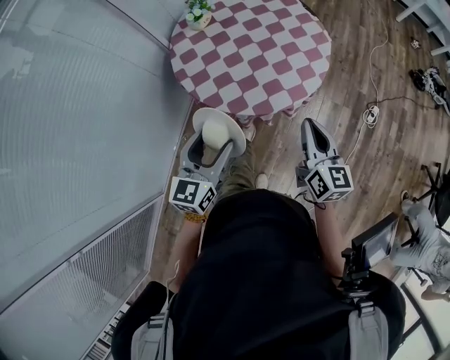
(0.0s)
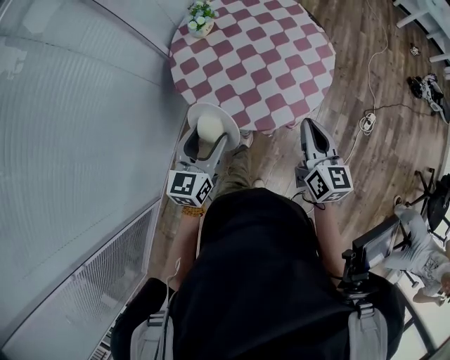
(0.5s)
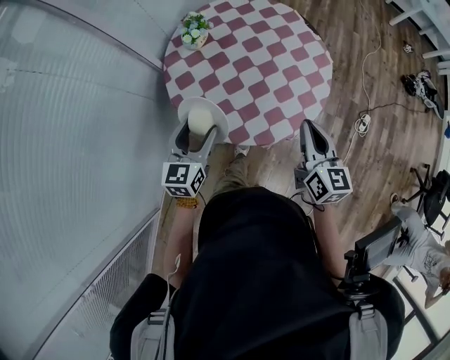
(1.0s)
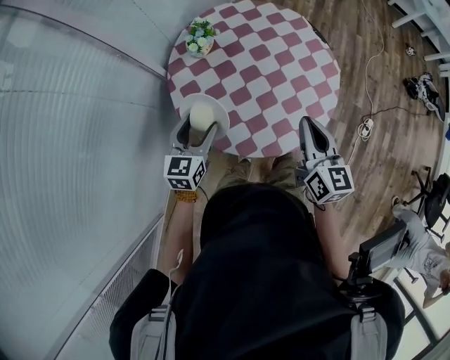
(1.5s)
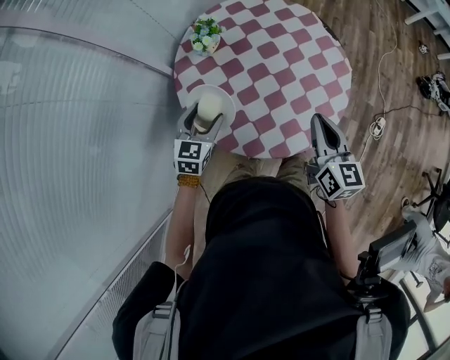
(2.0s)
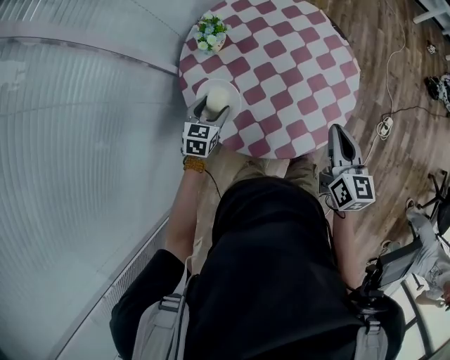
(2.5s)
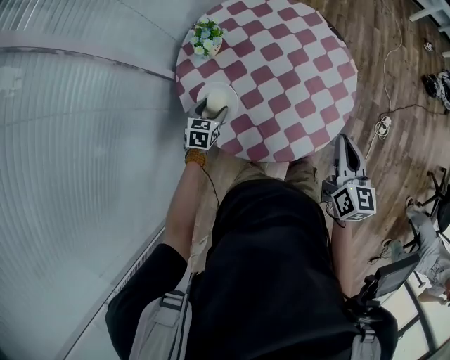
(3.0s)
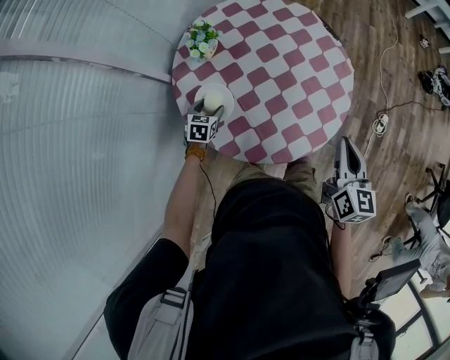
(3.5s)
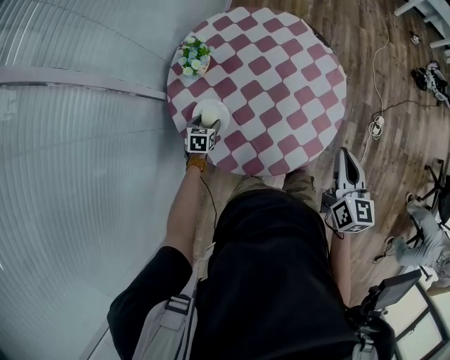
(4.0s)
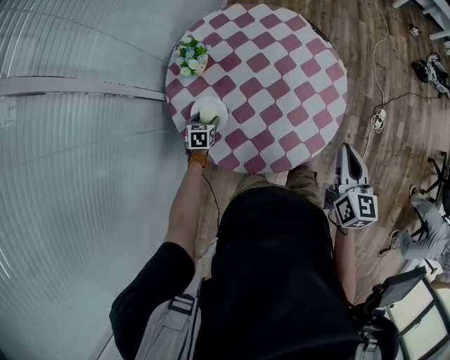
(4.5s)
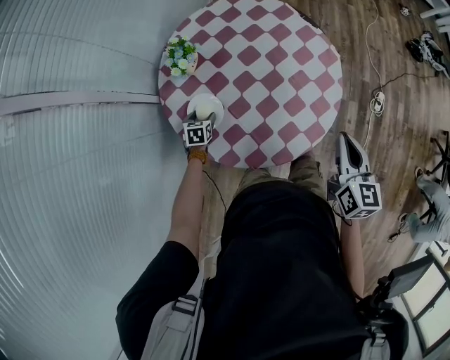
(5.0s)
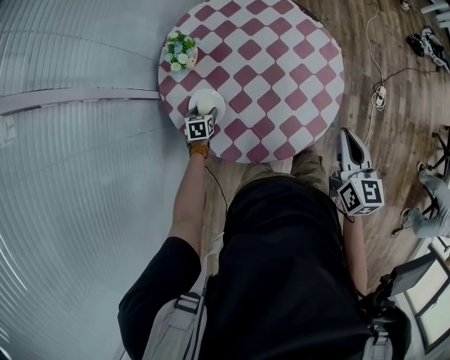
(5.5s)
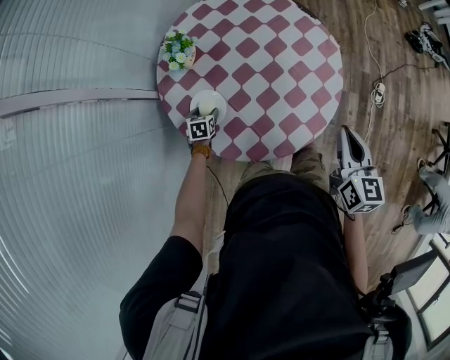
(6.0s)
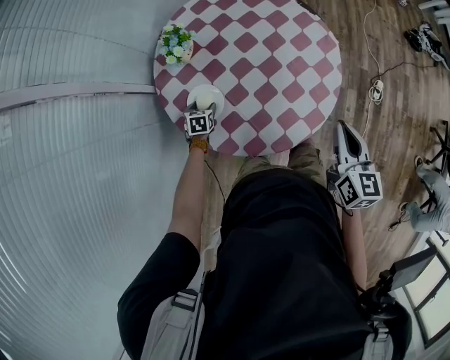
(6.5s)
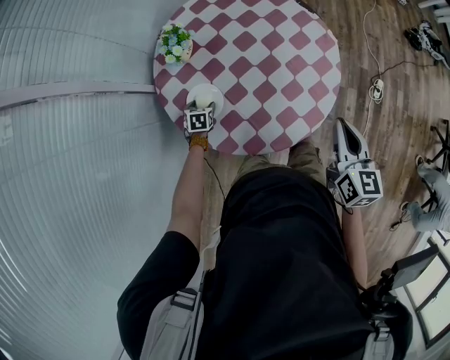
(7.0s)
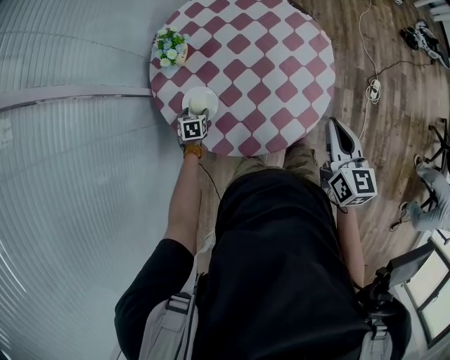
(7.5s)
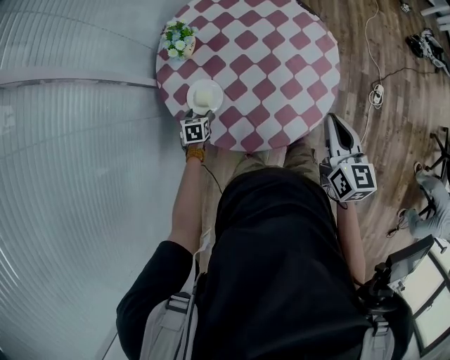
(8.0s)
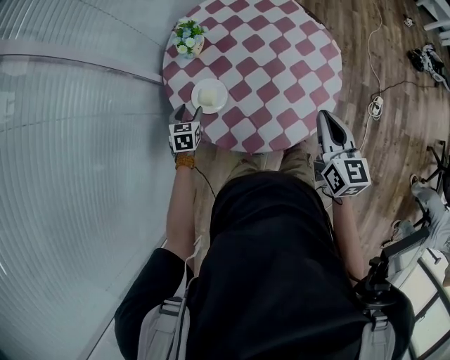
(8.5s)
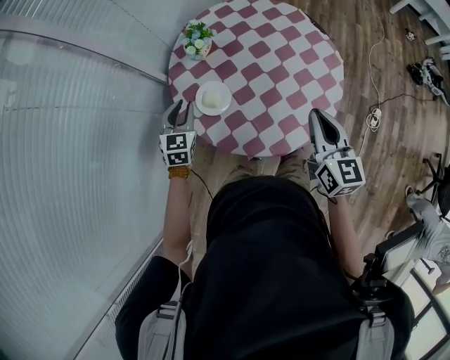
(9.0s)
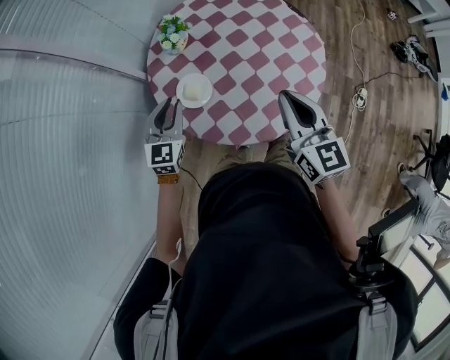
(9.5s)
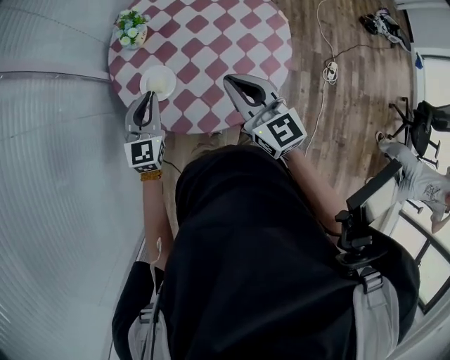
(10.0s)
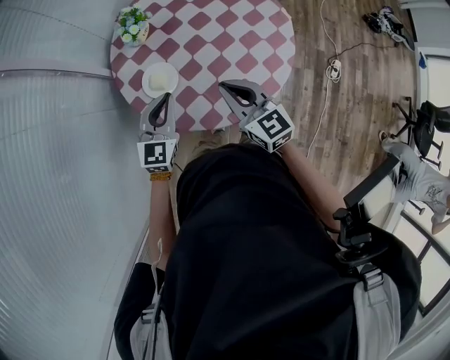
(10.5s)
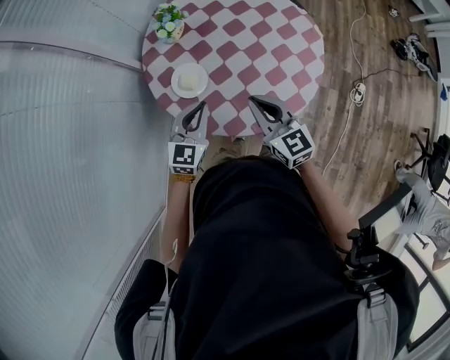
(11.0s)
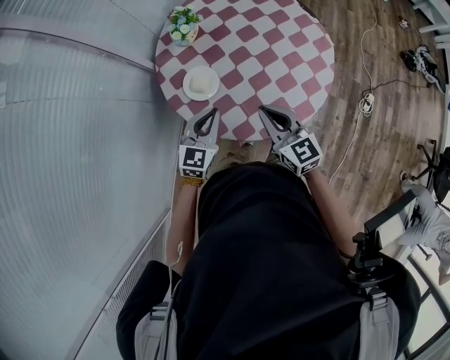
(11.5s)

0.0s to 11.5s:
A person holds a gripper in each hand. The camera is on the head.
0.0s to 2.0s: The left gripper goes some 35 cm forward, downward and to the left. Meanwhile the right gripper is displaced forward by about 20 cm.
2.0s to 4.0s: The right gripper shifts about 10 cm to the right; the left gripper is displaced downward by about 20 cm, and turns by approximately 30 degrees.
4.0s to 7.5s: The grippers make only small movements.
7.5s to 9.5s: The left gripper shifts about 30 cm upward, points its fingers some 40 degrees further upward, and closes its fingers. Meanwhile the right gripper goes roughly 15 cm to the left and upward, and rotates approximately 20 degrees.
9.5s to 11.5s: The left gripper heads to the right and backward, covering some 10 cm. The right gripper is displaced downward and to the left by approximately 10 cm.

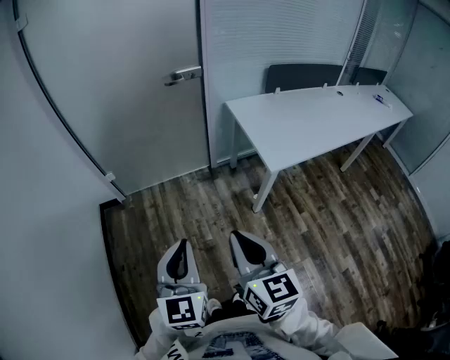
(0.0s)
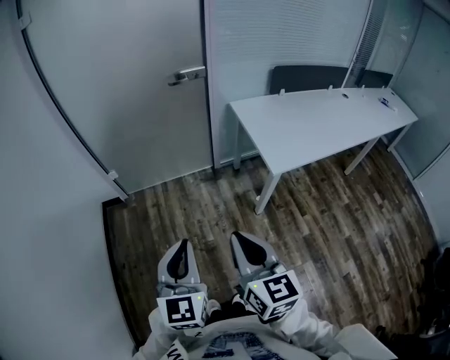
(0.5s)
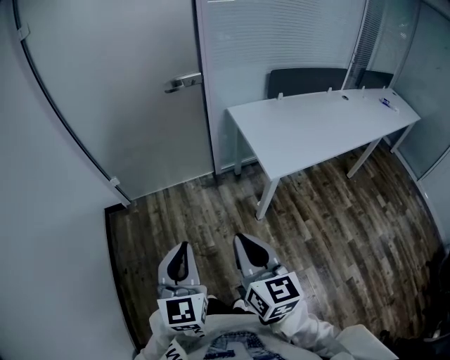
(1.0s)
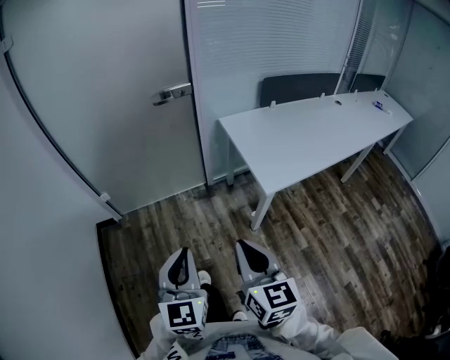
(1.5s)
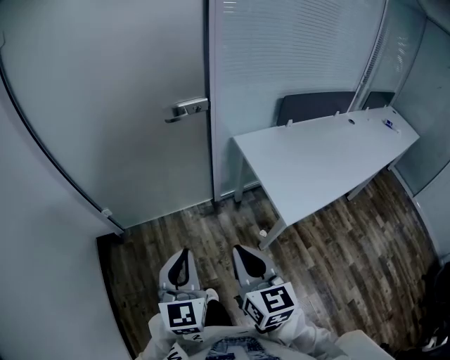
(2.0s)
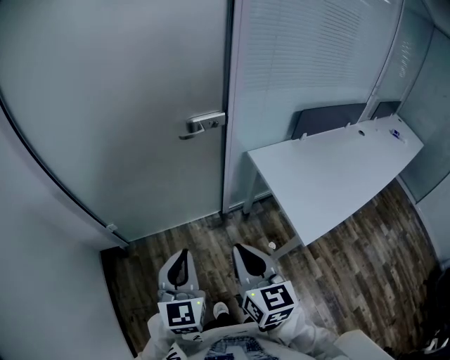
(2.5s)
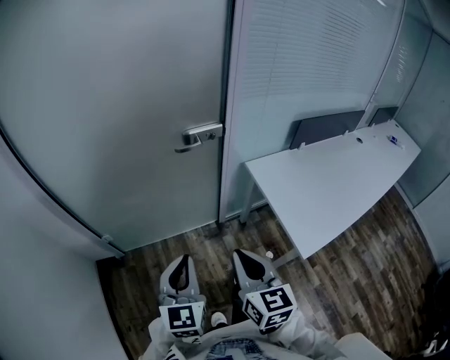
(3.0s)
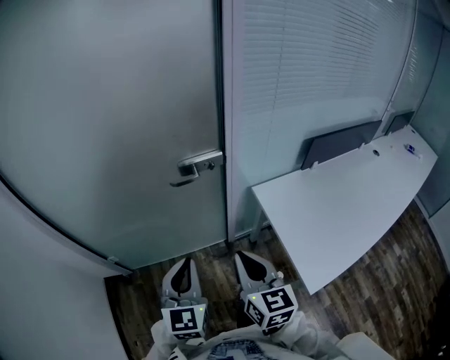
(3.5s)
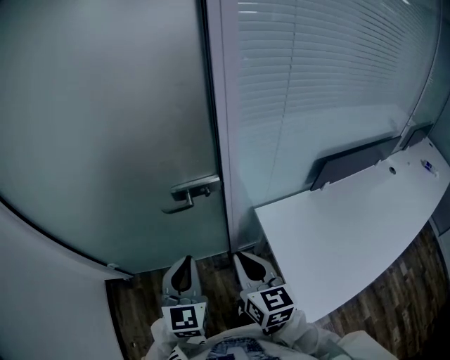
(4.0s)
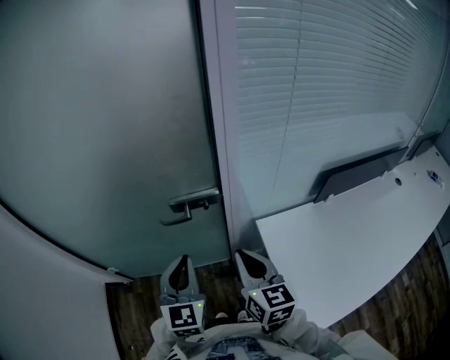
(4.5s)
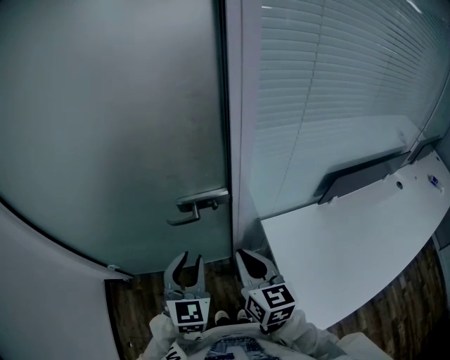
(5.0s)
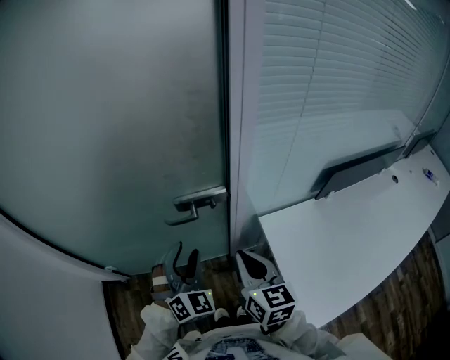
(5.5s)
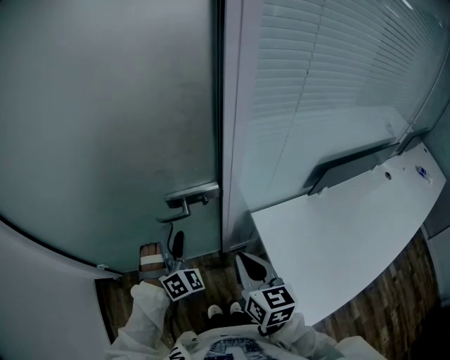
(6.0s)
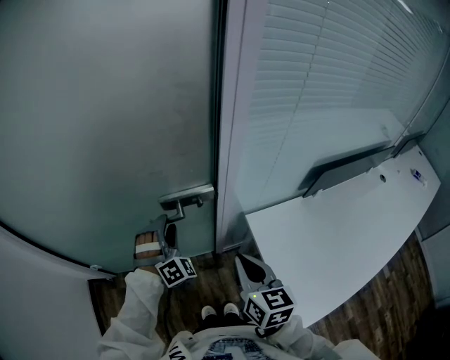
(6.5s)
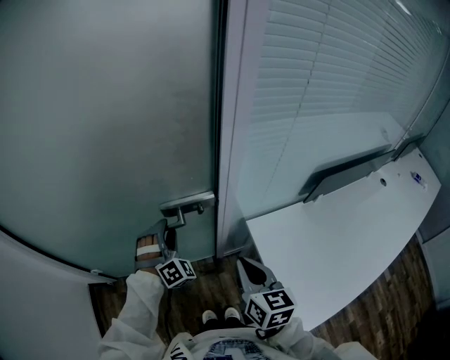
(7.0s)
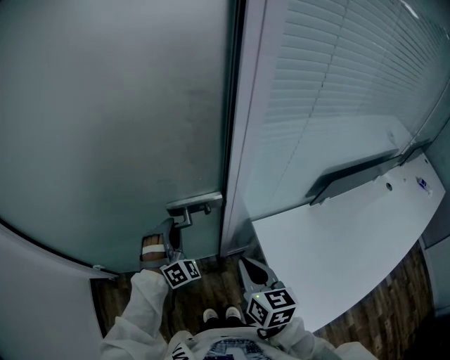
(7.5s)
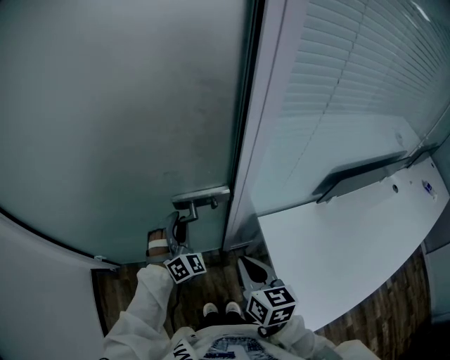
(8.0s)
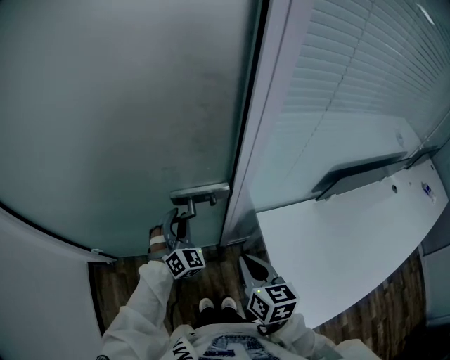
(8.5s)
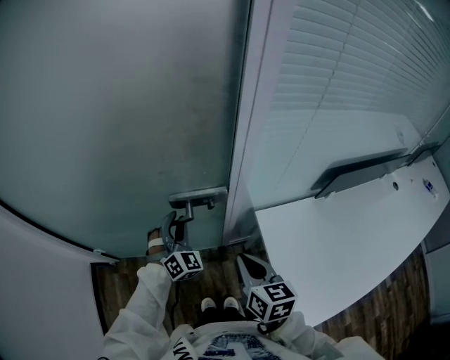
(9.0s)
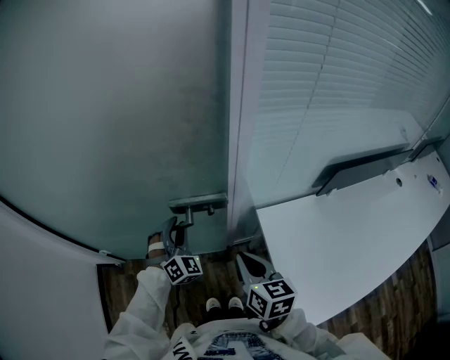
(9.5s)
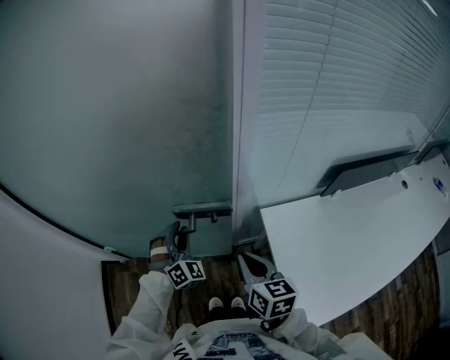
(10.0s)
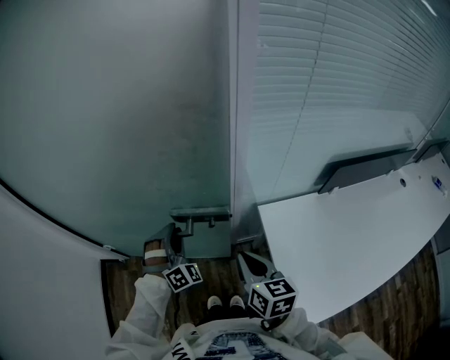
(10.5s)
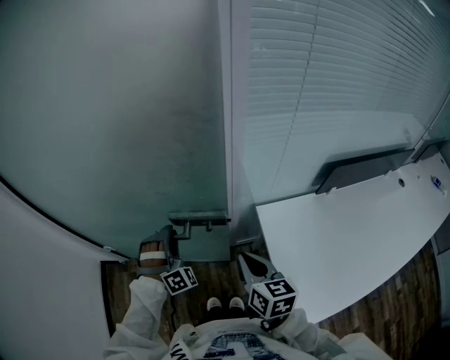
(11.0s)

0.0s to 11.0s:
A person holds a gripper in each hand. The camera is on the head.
0.0s to 2.0s: The two grippers go approximately 20 cm forward.
2.0s to 3.5s: The grippers both shift forward by roughly 30 cm.
3.5s to 5.5s: Both grippers move forward, about 20 cm. The left gripper rotates around the line of its fingers by about 40 degrees, clockwise from behind, and opens.
5.5s to 7.5s: The left gripper moves forward and downward, about 15 cm, changes its angle by some 20 degrees, and closes its fingers.
9.0s to 11.0s: The left gripper is displaced backward by about 10 cm, and rotates some 30 degrees.

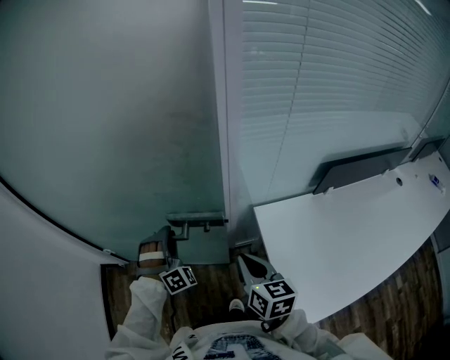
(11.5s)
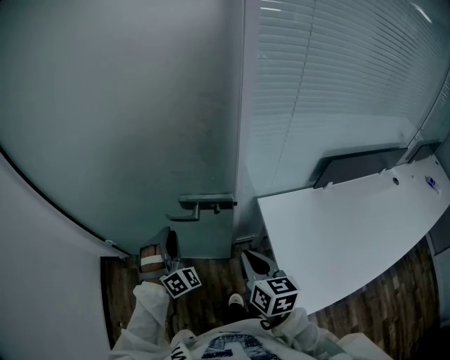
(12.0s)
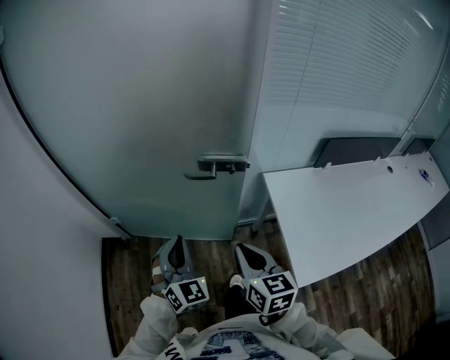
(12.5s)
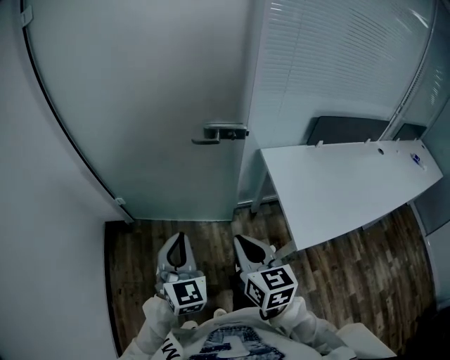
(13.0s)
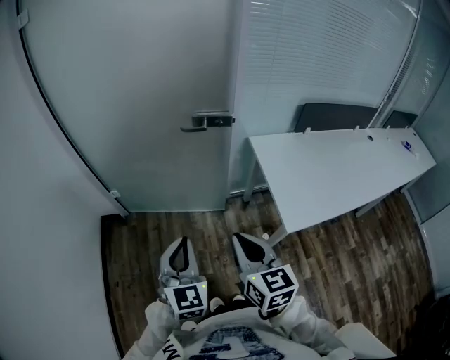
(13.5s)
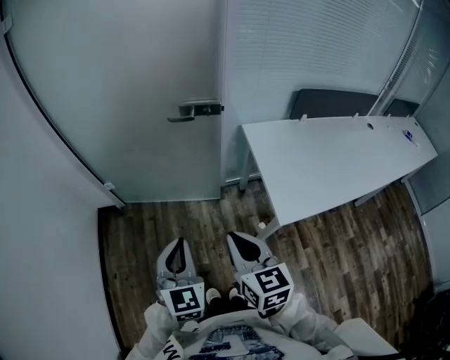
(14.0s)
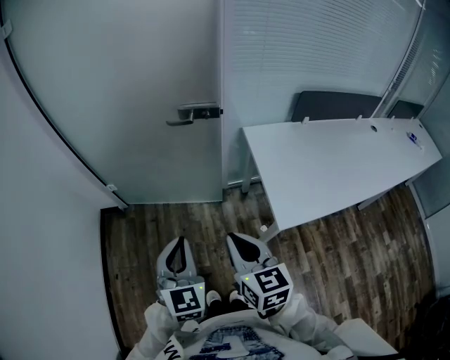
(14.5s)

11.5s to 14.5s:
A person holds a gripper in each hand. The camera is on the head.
11.5s to 13.0s: The grippers both shift backward and to the left by approximately 35 cm. The left gripper twists roughly 60 degrees counterclockwise, seen from behind, and closes.
13.0s to 14.5s: Both grippers move backward and to the right, approximately 10 cm.

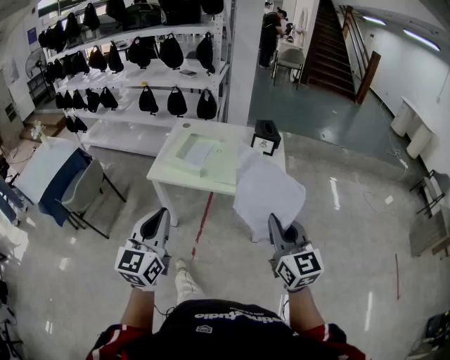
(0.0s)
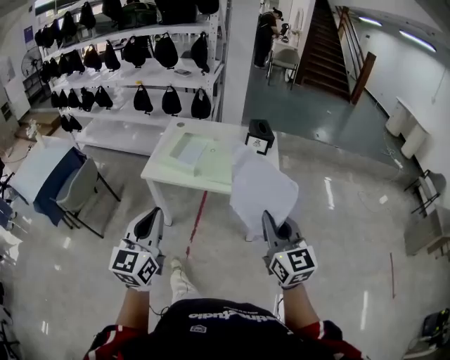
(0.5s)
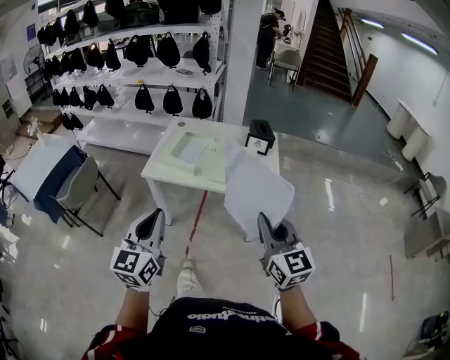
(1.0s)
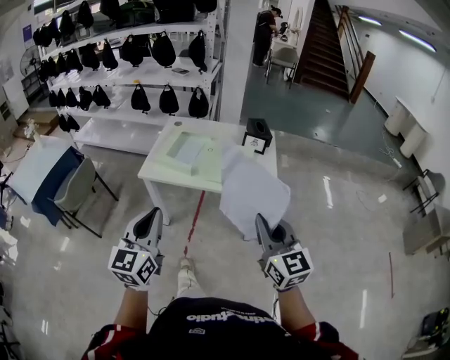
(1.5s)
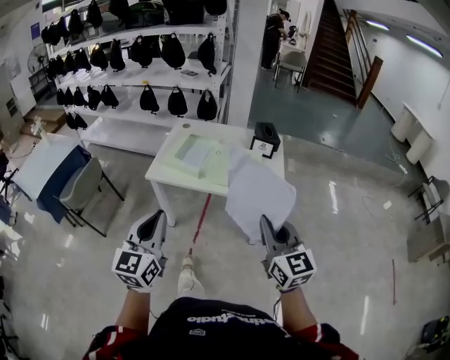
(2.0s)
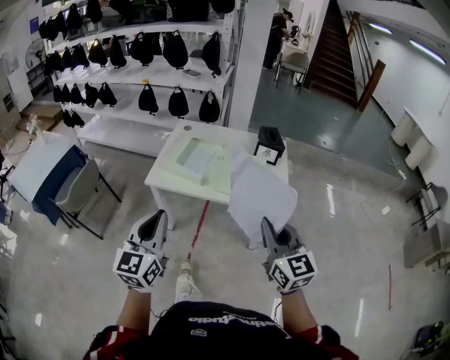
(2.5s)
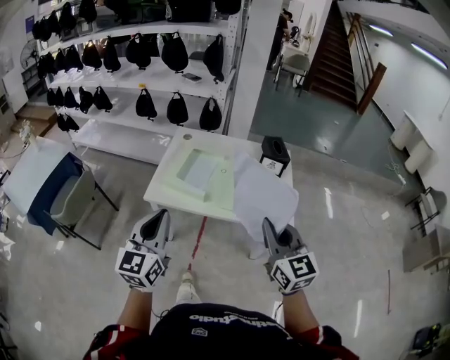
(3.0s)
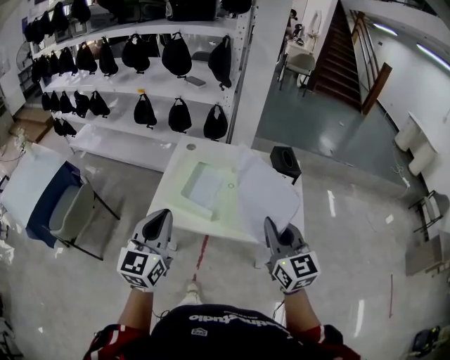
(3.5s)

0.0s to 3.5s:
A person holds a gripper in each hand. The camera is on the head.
0.0s to 2.0s: The grippers stay close to where they were, moving slightly.
2.0s to 3.5s: The two grippers go approximately 25 cm forward.
